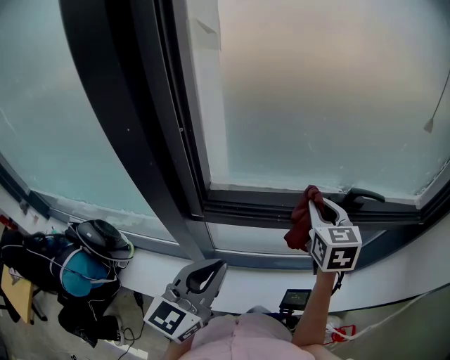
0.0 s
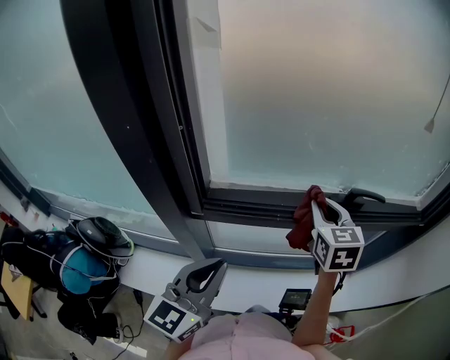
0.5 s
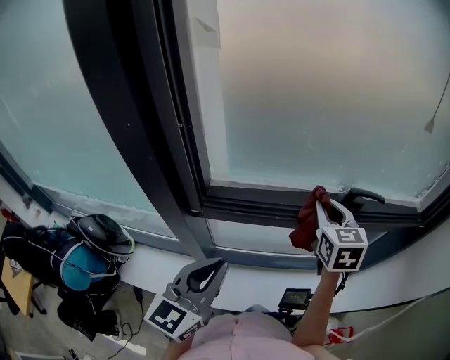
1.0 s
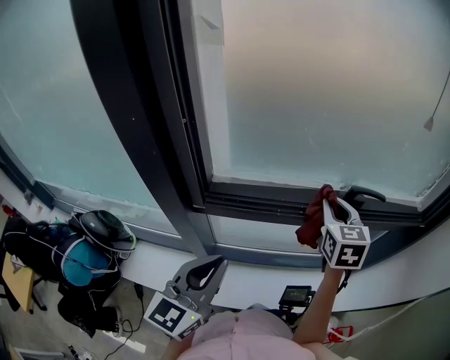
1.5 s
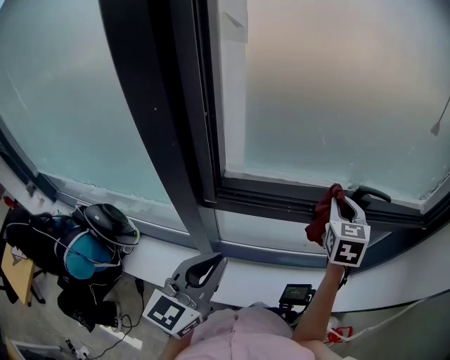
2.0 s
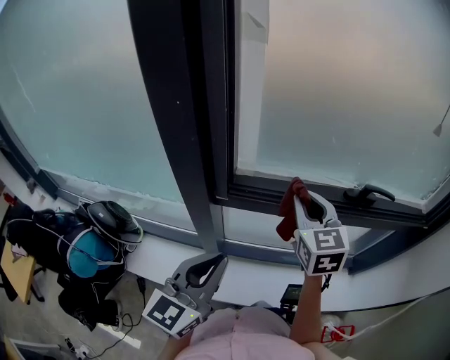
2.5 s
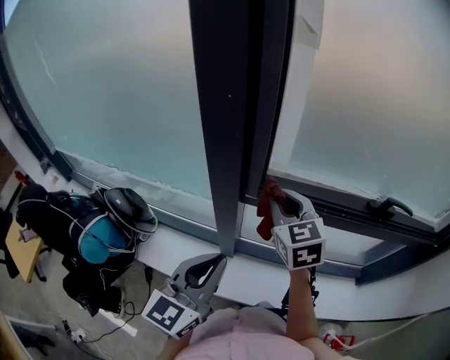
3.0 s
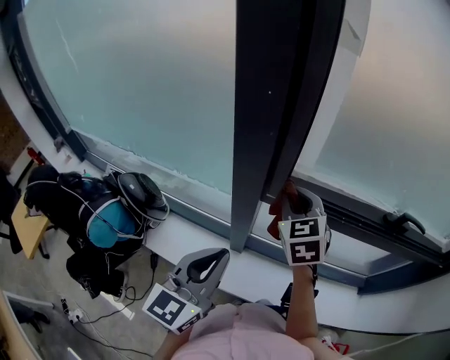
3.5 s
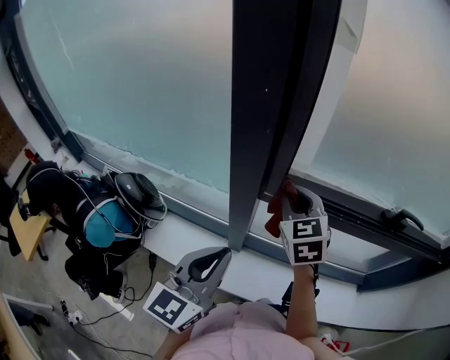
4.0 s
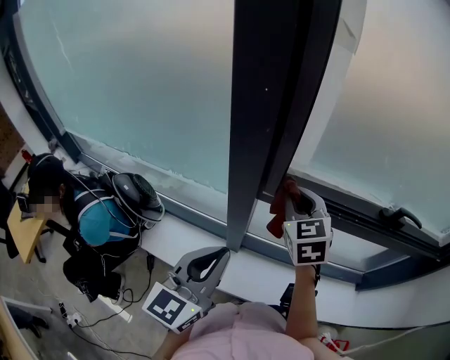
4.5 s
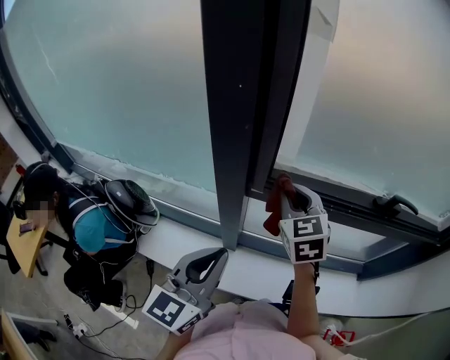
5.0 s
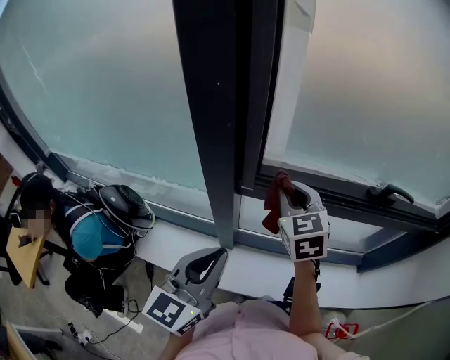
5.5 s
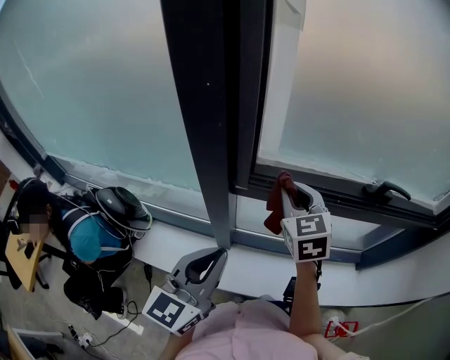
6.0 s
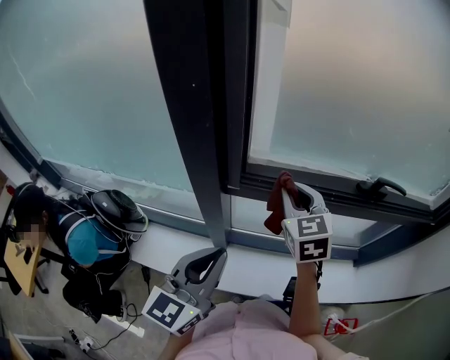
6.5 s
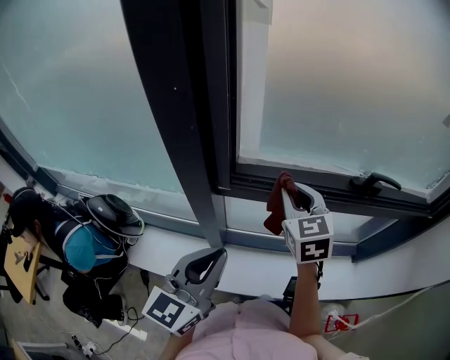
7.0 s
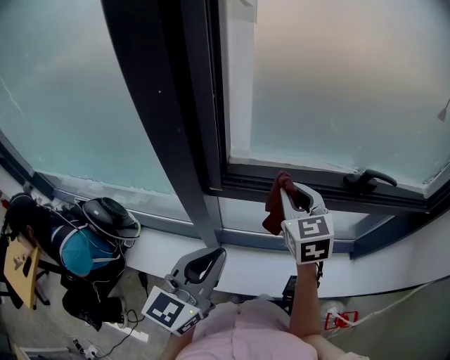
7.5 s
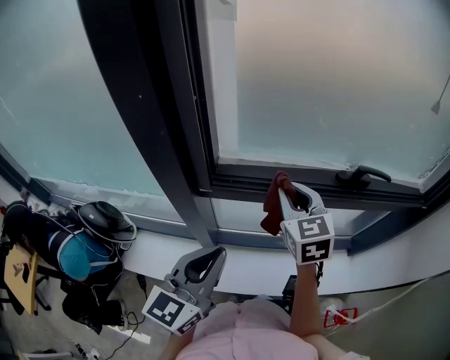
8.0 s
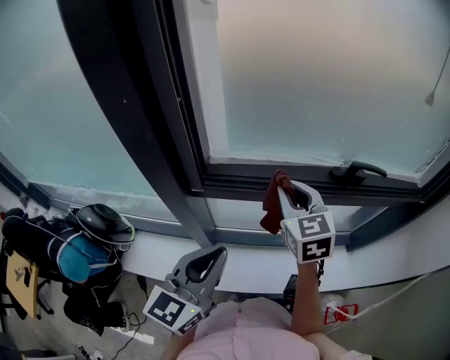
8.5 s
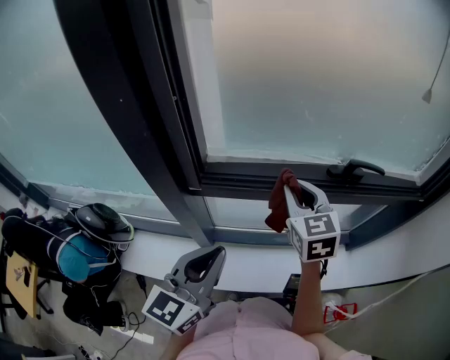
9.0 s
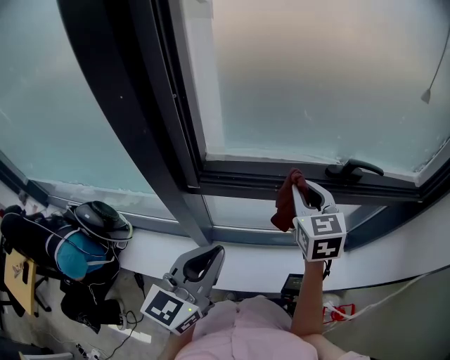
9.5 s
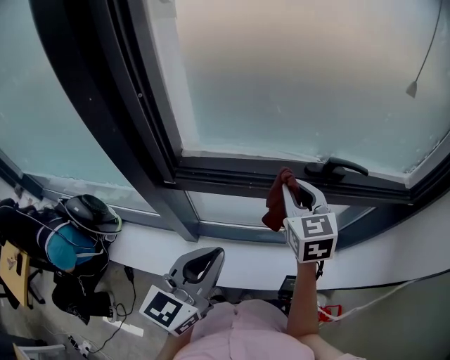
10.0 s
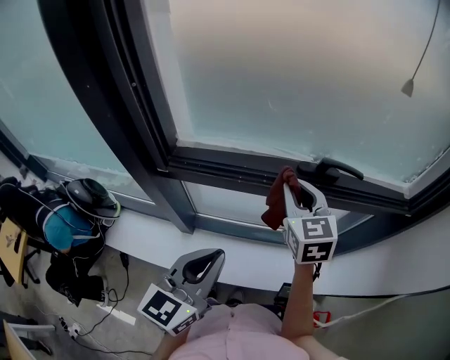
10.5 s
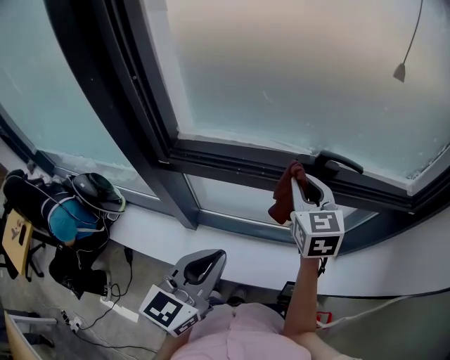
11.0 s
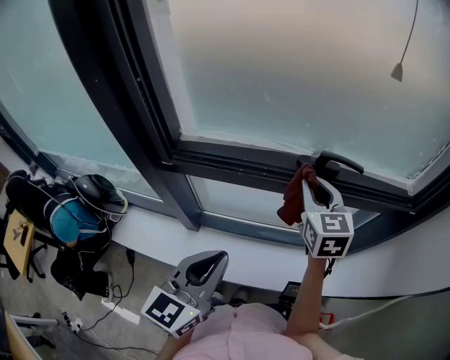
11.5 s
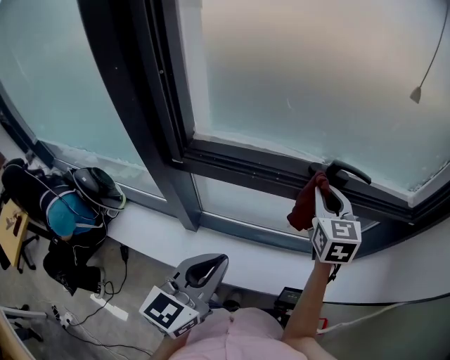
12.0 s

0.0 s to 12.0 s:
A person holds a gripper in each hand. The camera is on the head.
0.0 to 2.0 s: The grippers stay close to where they were, moving slightly.
2.0 to 4.0 s: The left gripper travels to the left by about 10 cm, while the right gripper shifts some 30 cm to the left, and changes its angle by approximately 30 degrees.
4.0 to 6.0 s: The right gripper shifts some 5 cm to the right.
6.0 to 8.0 s: The two grippers go some 5 cm to the right.
8.0 to 10.0 s: Both grippers move to the right, some 10 cm.
10.0 to 12.0 s: The right gripper is displaced to the right by some 10 cm. Meanwhile the left gripper moves some 5 cm.

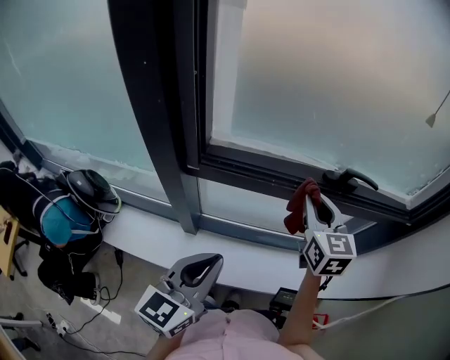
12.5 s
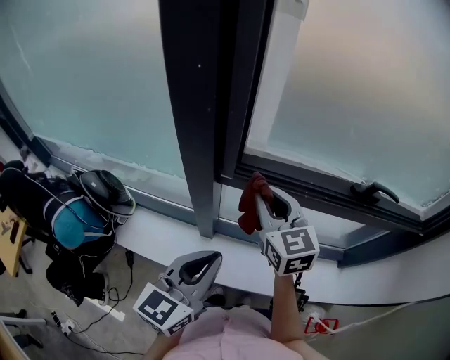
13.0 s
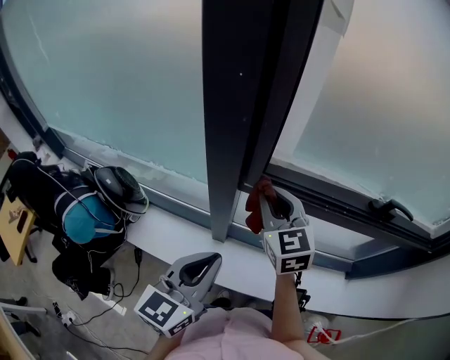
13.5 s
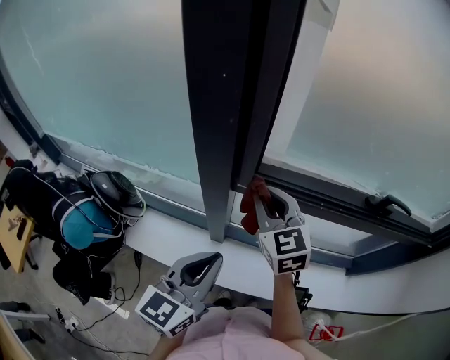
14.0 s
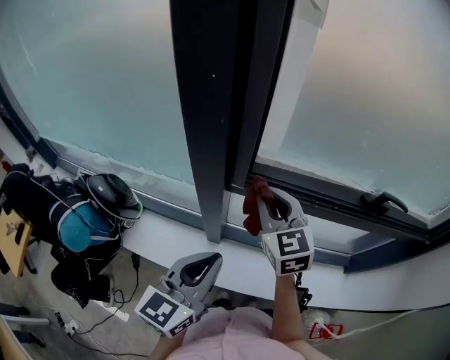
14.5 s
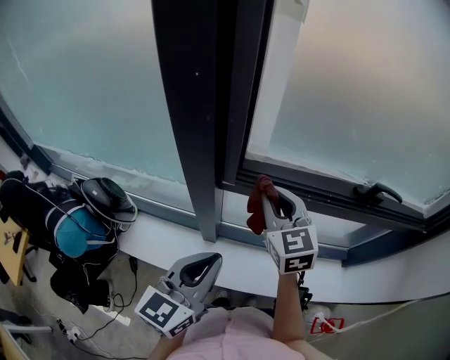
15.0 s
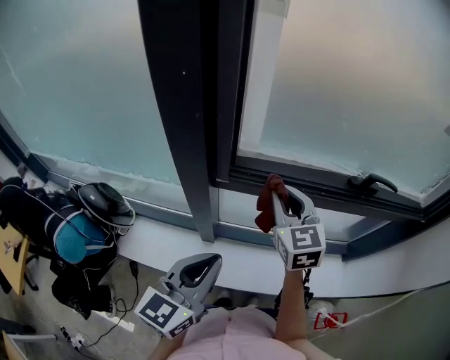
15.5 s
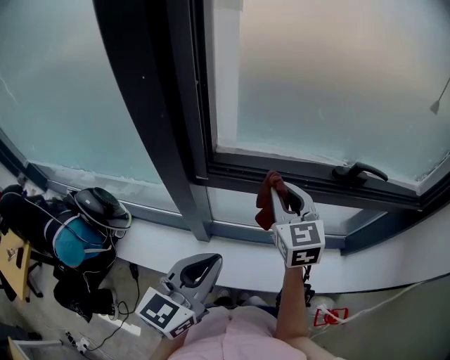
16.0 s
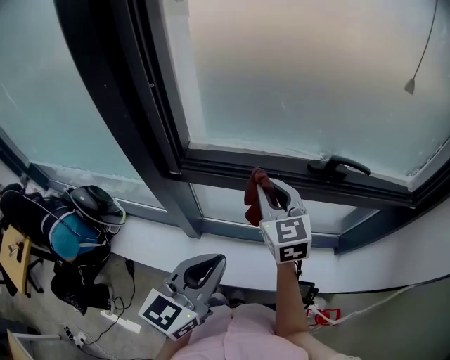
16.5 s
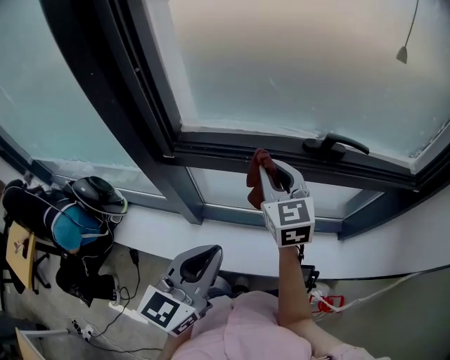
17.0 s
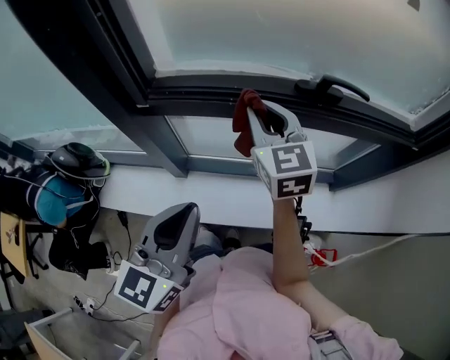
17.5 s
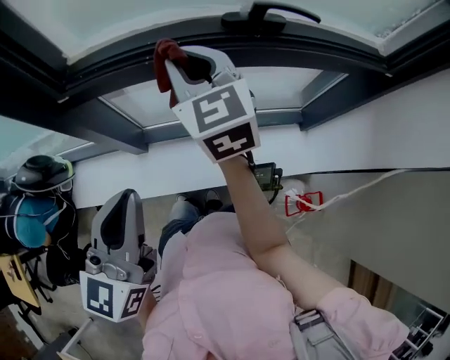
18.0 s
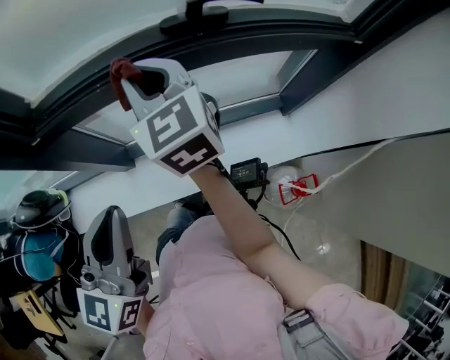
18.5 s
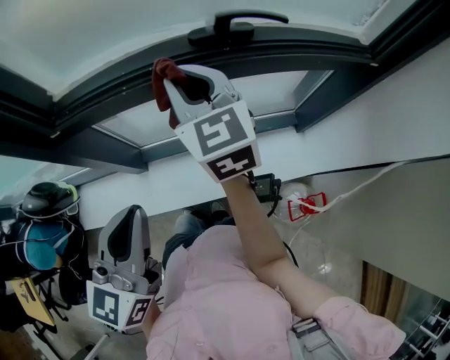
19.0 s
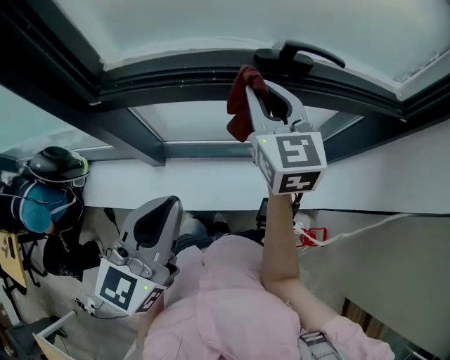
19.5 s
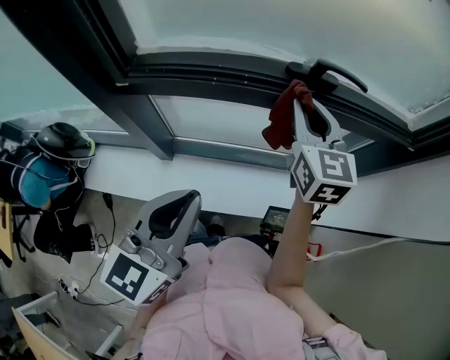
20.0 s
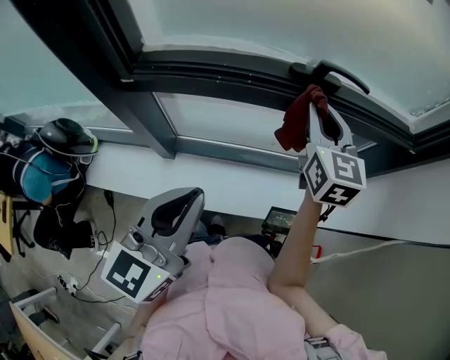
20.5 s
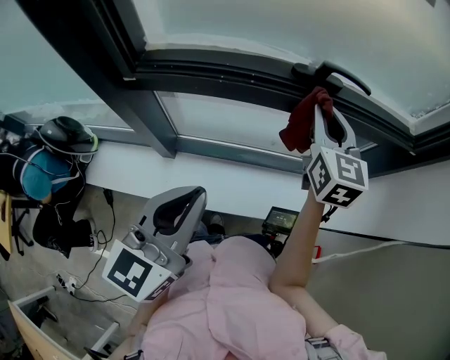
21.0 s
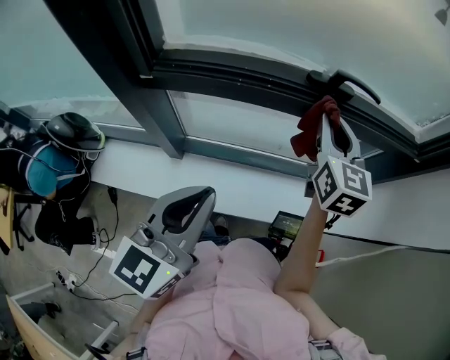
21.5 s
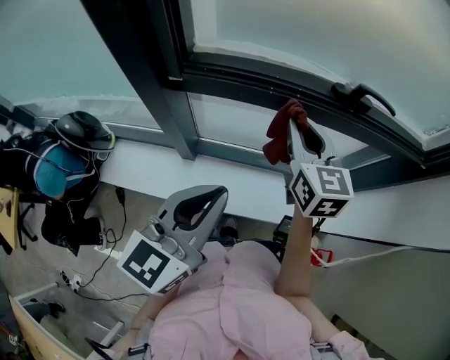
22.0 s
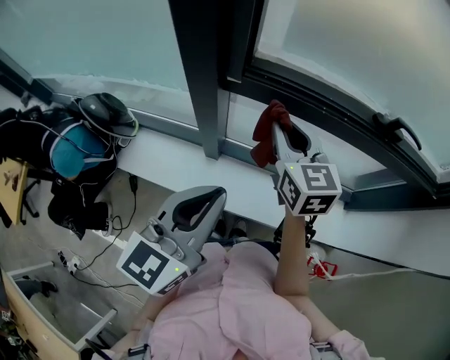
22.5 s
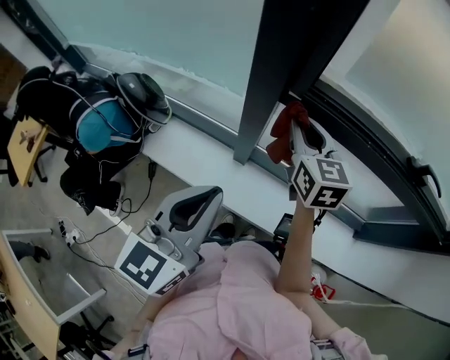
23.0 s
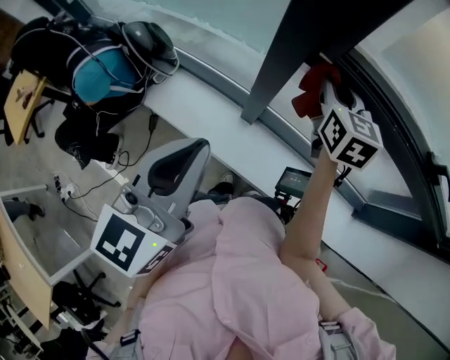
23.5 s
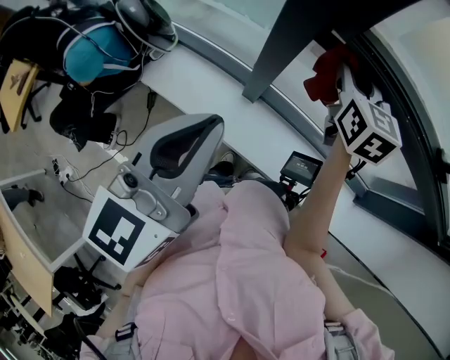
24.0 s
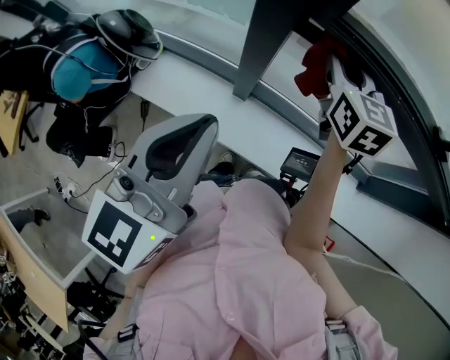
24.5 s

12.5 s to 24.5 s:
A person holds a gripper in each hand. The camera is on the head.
12.5 to 14.5 s: The left gripper travels to the left by approximately 10 cm; the right gripper shifts about 25 cm to the left, and rotates some 20 degrees.
14.5 to 16.5 s: Both grippers move to the right, roughly 15 cm.
16.5 to 18.5 s: There are only small adjustments of the grippers.
18.5 to 20.5 s: The right gripper heads to the right, covering roughly 15 cm.
20.5 to 22.5 s: The left gripper travels to the left by some 15 cm; the right gripper shifts some 30 cm to the left, and changes its angle by some 20 degrees.
22.5 to 24.5 s: The right gripper moves forward, approximately 10 cm; the left gripper shifts roughly 10 cm to the left.

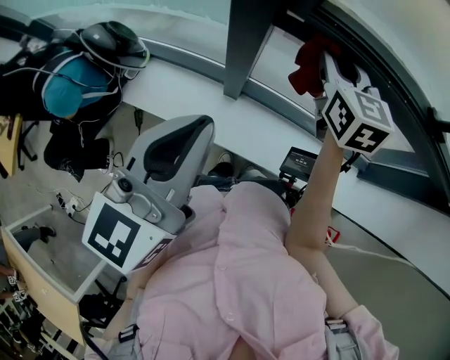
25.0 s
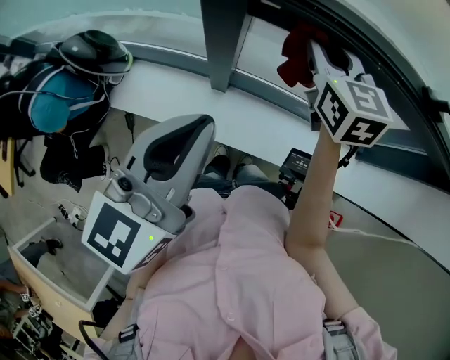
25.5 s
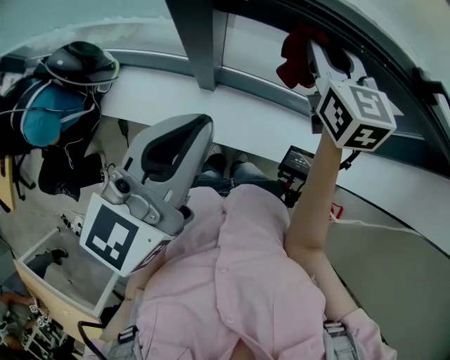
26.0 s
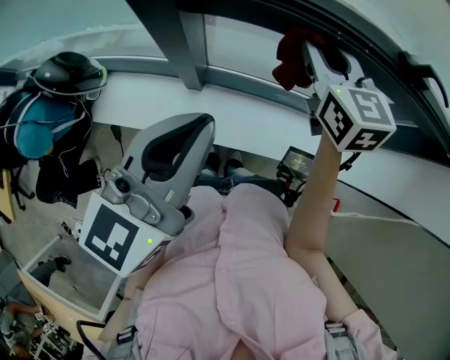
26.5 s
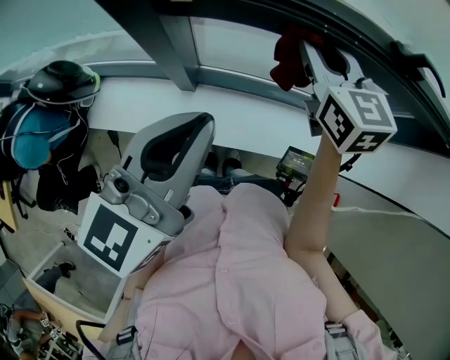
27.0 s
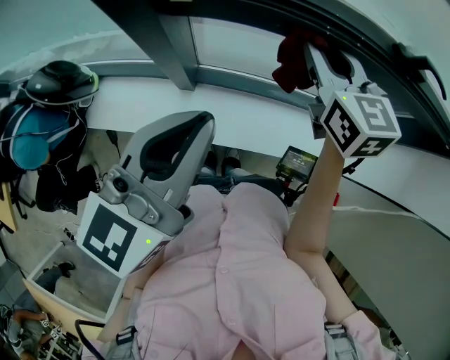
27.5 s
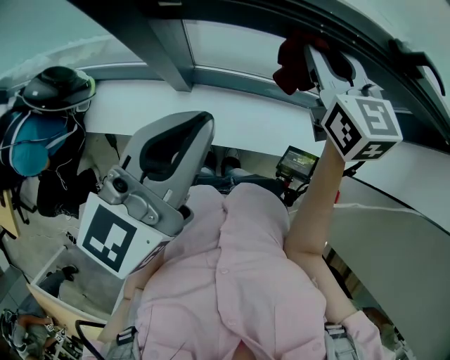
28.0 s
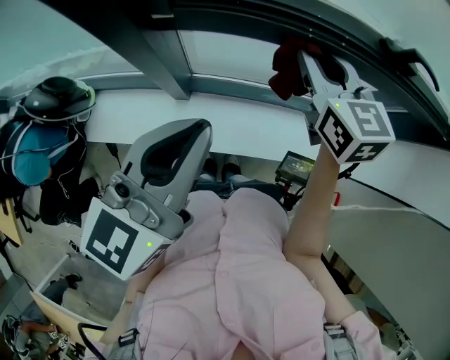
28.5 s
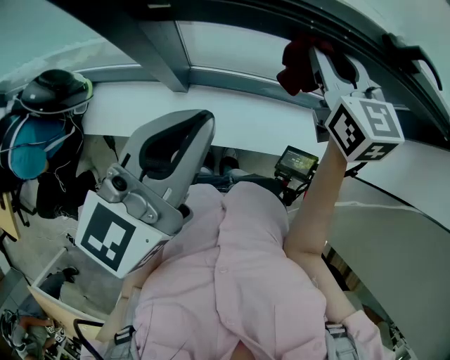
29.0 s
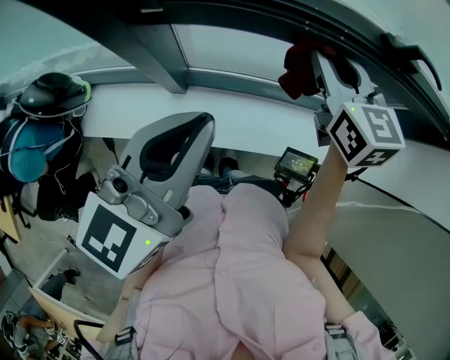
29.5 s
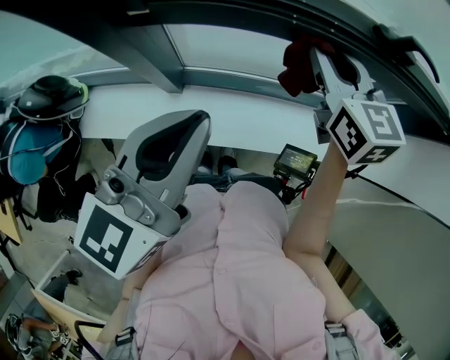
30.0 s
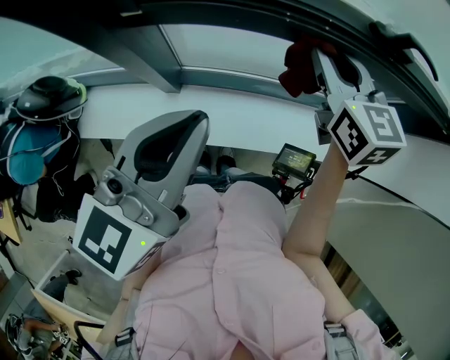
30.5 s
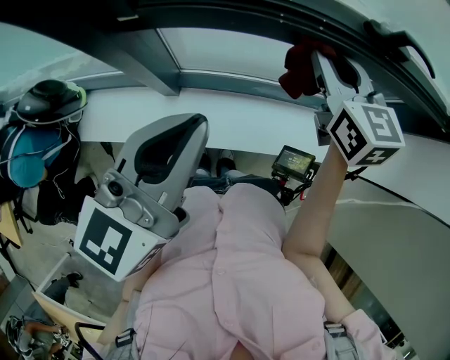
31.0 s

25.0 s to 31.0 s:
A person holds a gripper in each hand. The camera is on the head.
25.0 to 27.0 s: The left gripper travels to the right and forward by roughly 15 cm. The right gripper goes about 10 cm to the right.
27.0 to 29.0 s: The grippers stay close to where they were, moving slightly.
29.0 to 31.0 s: The grippers make only small movements.
